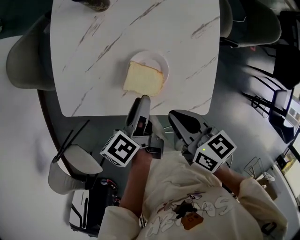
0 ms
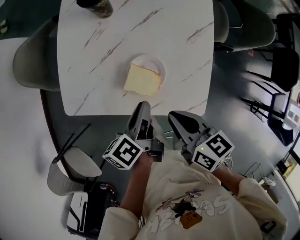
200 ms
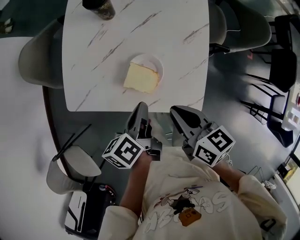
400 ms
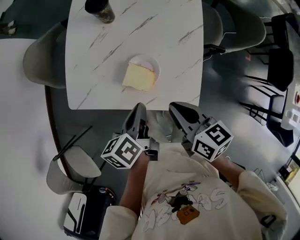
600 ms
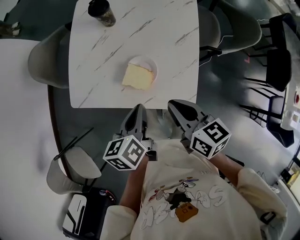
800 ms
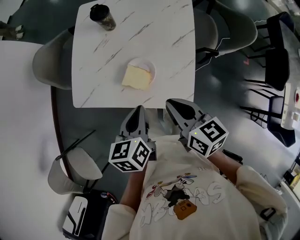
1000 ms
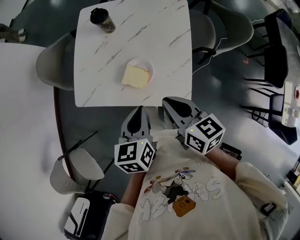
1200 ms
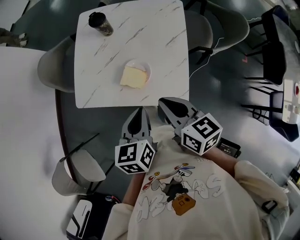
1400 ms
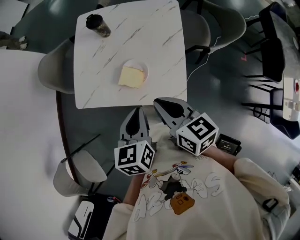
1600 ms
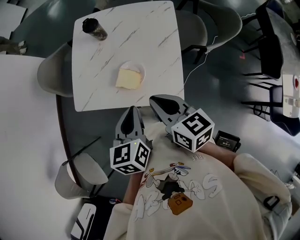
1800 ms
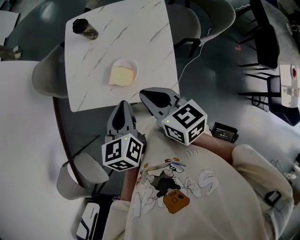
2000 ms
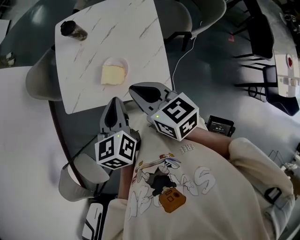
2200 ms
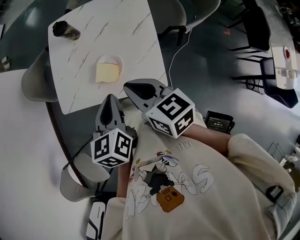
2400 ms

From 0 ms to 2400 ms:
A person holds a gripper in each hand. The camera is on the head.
From 0 ms to 1200 ms: The right gripper moves upward, approximately 15 cm.

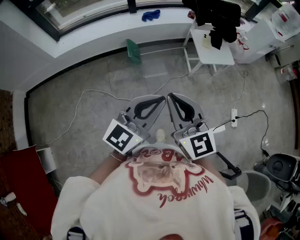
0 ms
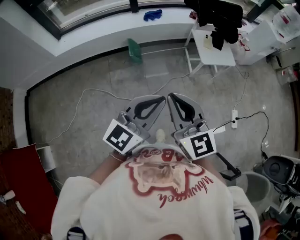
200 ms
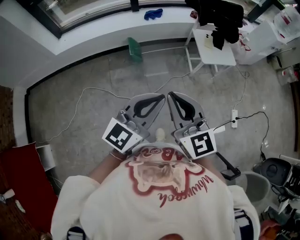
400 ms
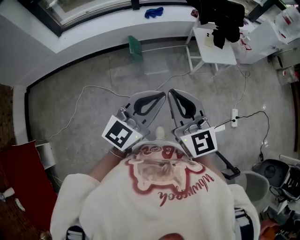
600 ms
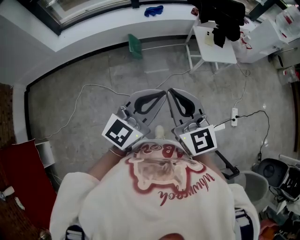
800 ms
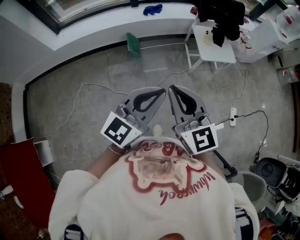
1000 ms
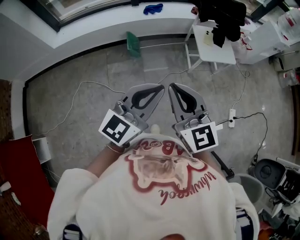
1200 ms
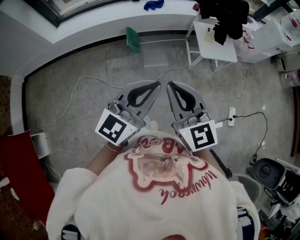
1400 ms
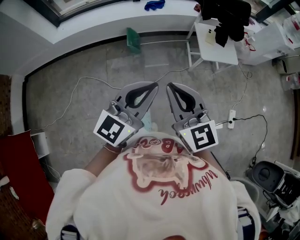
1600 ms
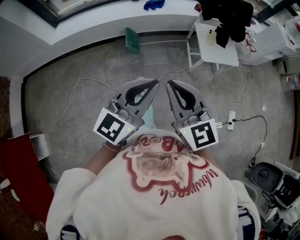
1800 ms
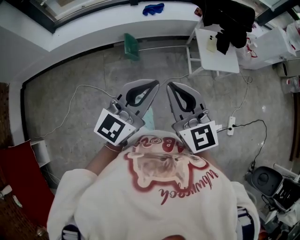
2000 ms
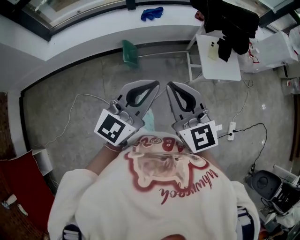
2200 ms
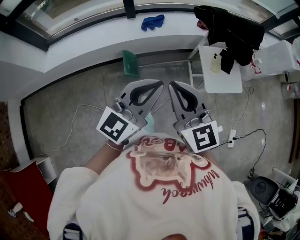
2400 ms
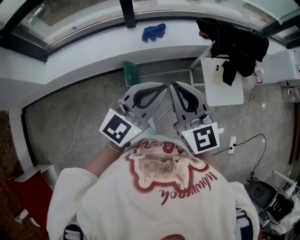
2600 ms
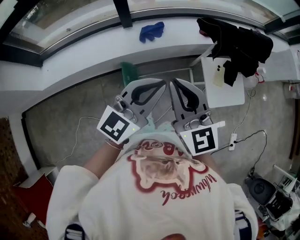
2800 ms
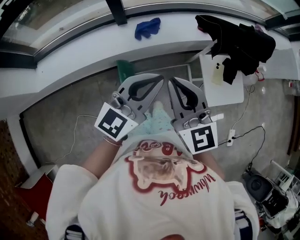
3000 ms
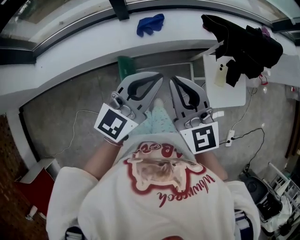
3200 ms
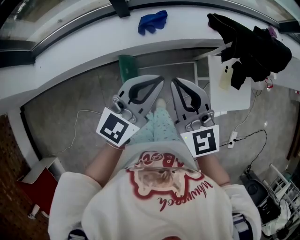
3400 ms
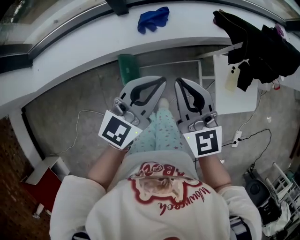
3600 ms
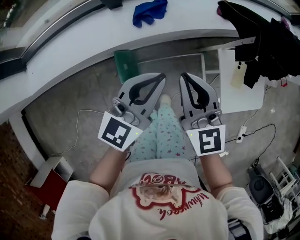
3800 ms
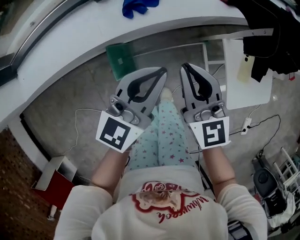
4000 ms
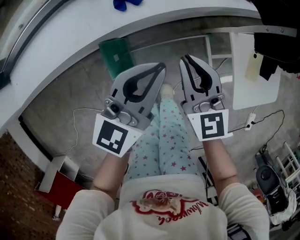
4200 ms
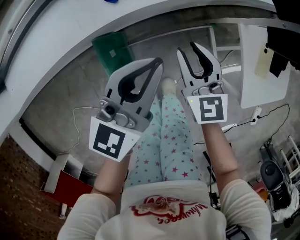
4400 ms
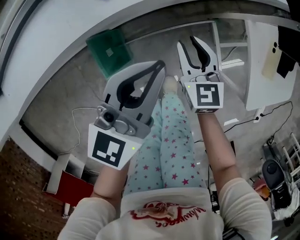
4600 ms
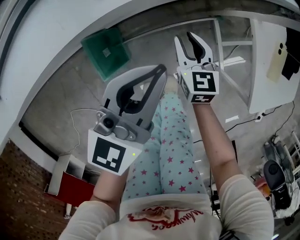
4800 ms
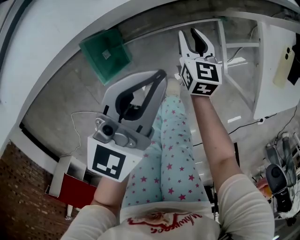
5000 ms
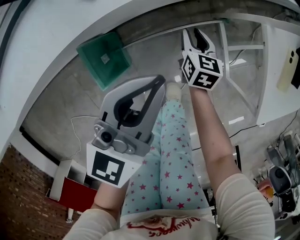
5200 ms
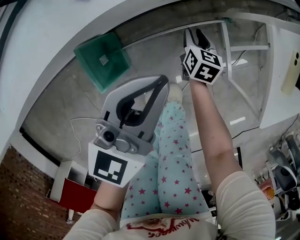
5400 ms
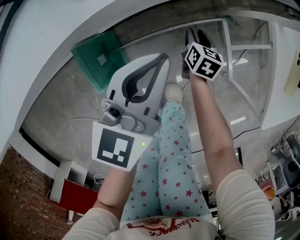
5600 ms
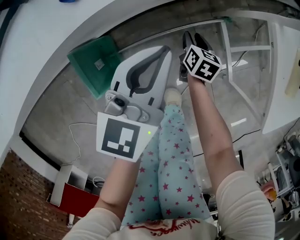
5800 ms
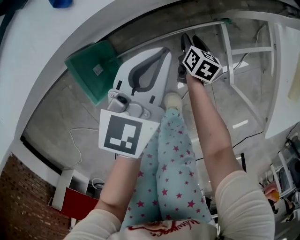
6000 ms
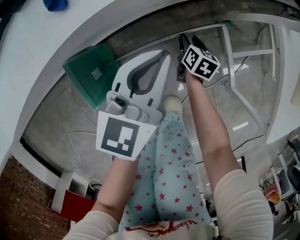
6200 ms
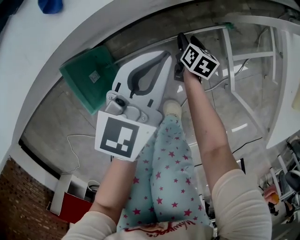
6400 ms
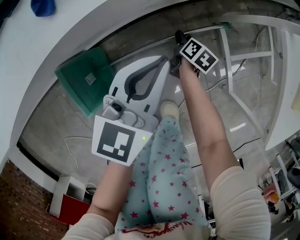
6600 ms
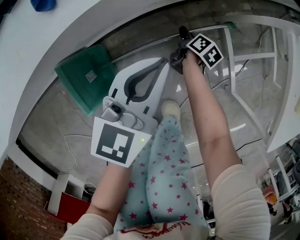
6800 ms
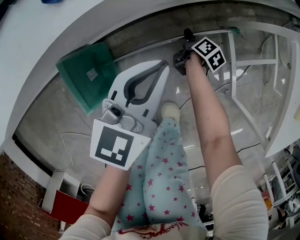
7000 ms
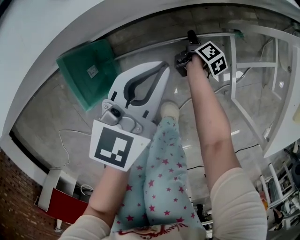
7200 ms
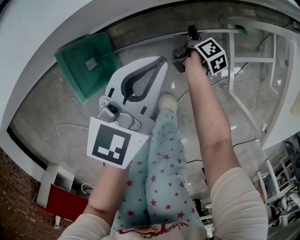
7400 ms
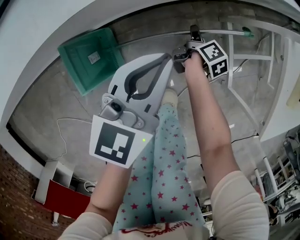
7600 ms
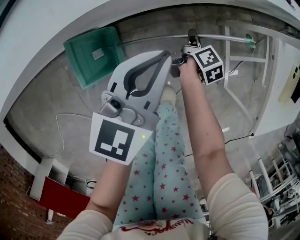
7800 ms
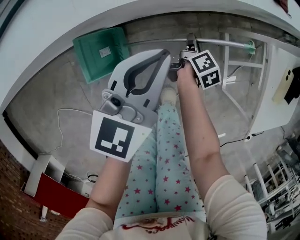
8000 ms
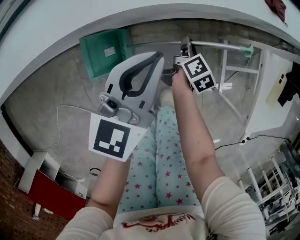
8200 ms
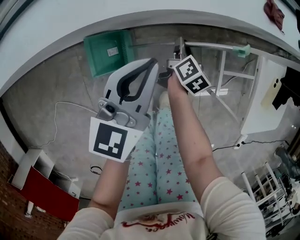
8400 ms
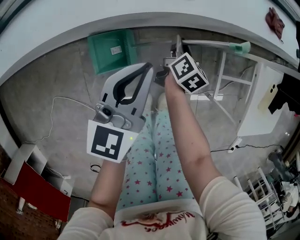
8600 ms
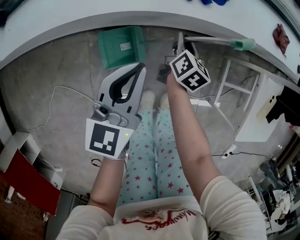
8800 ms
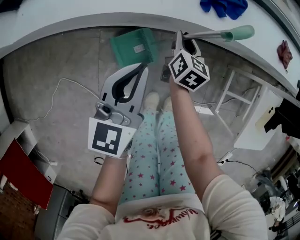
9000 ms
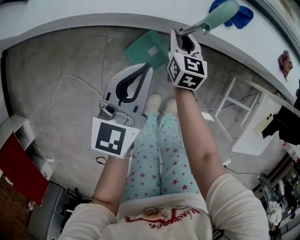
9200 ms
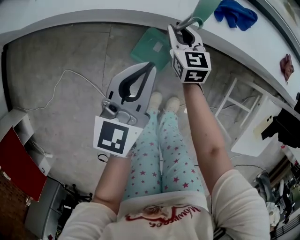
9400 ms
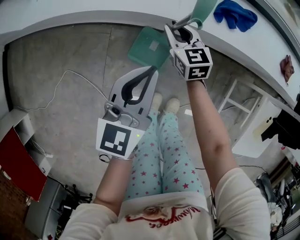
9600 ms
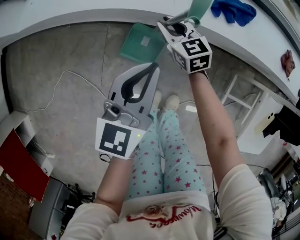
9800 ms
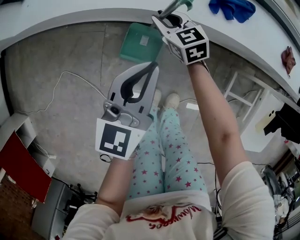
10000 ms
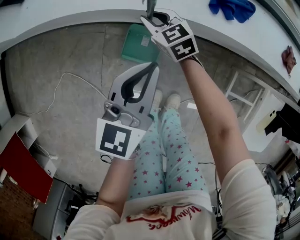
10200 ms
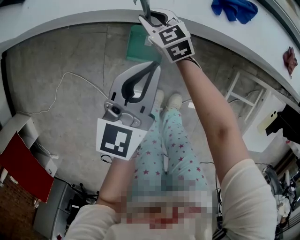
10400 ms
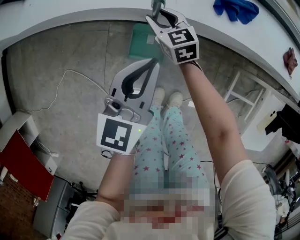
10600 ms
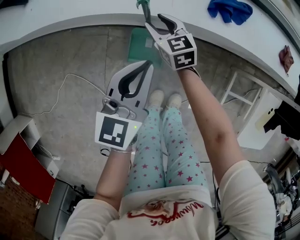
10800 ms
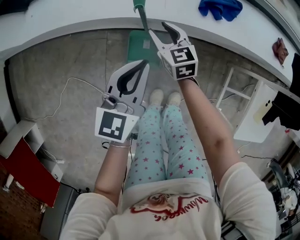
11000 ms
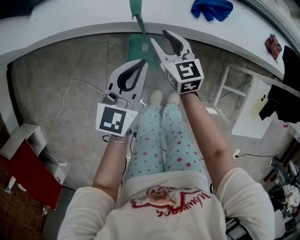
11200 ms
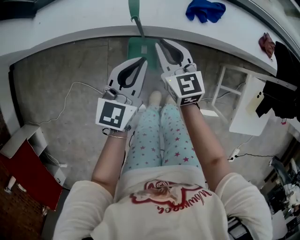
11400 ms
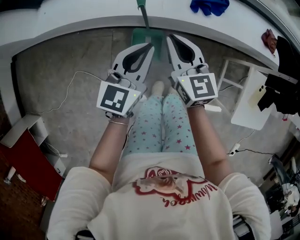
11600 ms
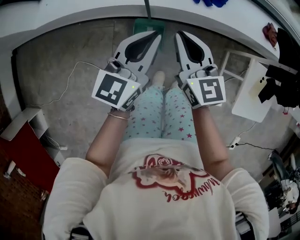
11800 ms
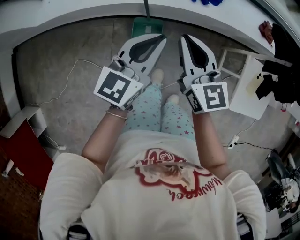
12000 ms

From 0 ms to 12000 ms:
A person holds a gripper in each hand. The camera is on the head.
From 0 ms to 1600 ms: The right gripper ends up about 5 cm from where it was. The left gripper ends up about 5 cm from where it was.
From 1600 ms to 3000 ms: The pair of grippers is taken forward, approximately 50 cm.
From 3000 ms to 4400 ms: Both grippers move downward and forward, approximately 40 cm. The right gripper rotates approximately 20 degrees, and opens its fingers.
From 4400 ms to 6000 ms: The right gripper is displaced downward by roughly 40 cm, and twists some 40 degrees clockwise, seen from behind, while the left gripper travels downward by roughly 25 cm.
From 6000 ms to 7600 ms: The right gripper travels downward and back again, roughly 10 cm each way, and swivels about 40 degrees.
From 7600 ms to 9000 ms: The left gripper moves approximately 30 cm, and changes its angle by some 30 degrees; the right gripper changes place by roughly 40 cm, and rolls counterclockwise, seen from behind, by about 50 degrees.
From 9000 ms to 10400 ms: The right gripper moves approximately 20 cm, and turns by roughly 60 degrees.
From 10400 ms to 12000 ms: The right gripper is displaced upward and backward by approximately 40 cm, and swivels roughly 30 degrees; the left gripper goes approximately 15 cm upward.

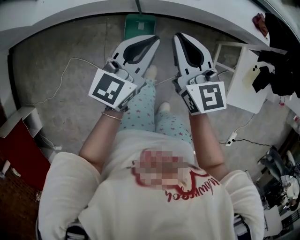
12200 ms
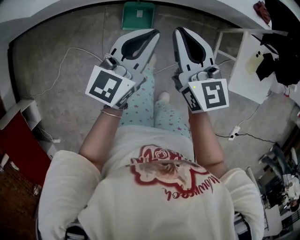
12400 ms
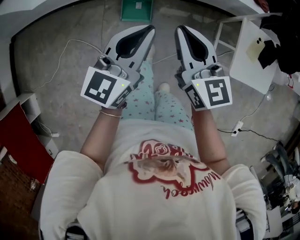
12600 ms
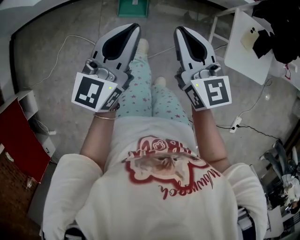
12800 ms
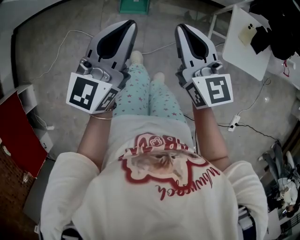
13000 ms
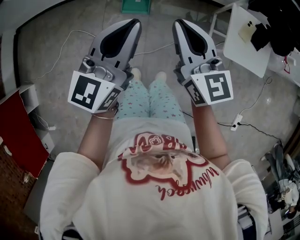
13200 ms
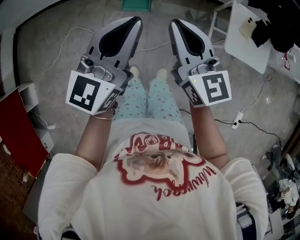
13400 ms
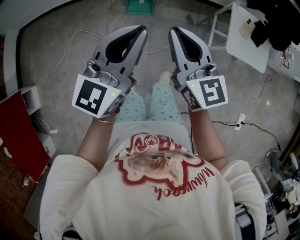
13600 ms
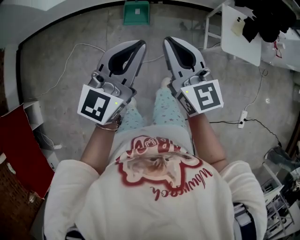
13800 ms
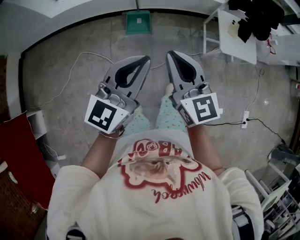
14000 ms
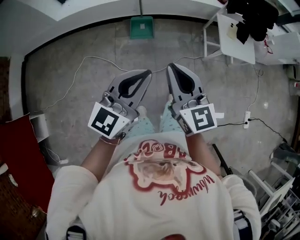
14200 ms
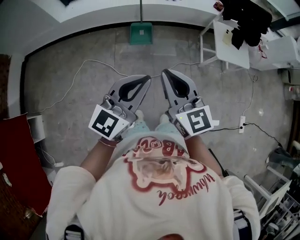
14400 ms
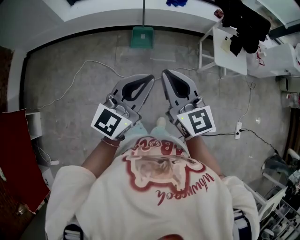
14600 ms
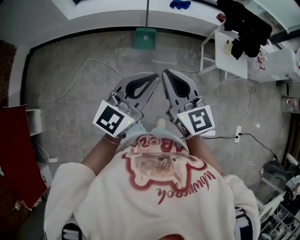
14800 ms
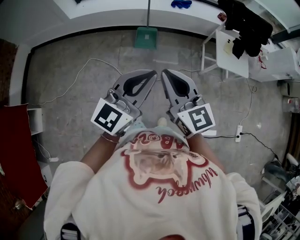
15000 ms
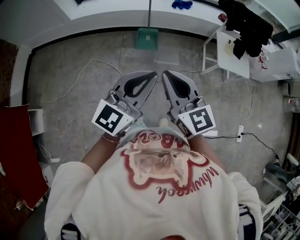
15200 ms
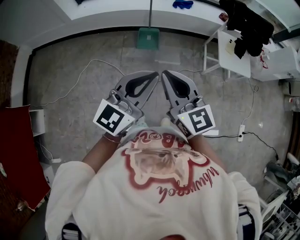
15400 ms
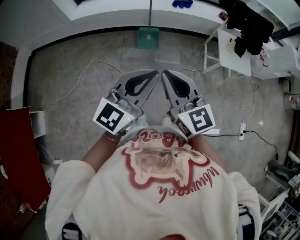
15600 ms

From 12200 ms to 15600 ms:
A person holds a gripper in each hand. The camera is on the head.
From 12200 ms to 13800 ms: The left gripper travels backward and upward by some 40 cm. The right gripper is displaced backward by approximately 40 cm.
From 13800 ms to 15600 ms: The grippers both shift backward, to the left and upward by some 25 cm.

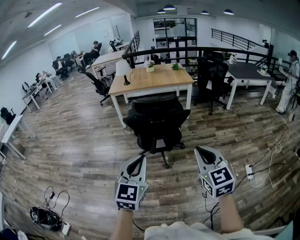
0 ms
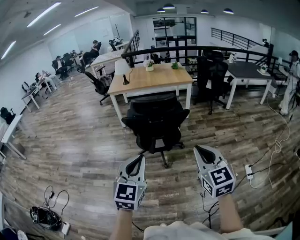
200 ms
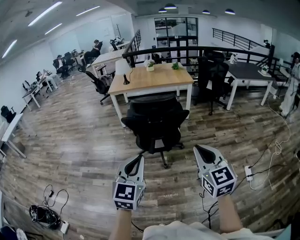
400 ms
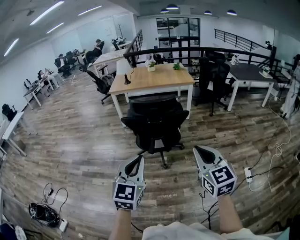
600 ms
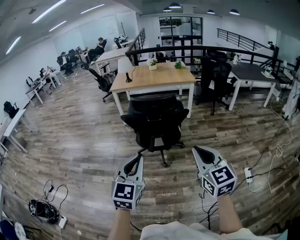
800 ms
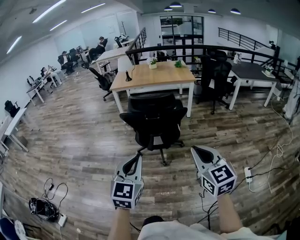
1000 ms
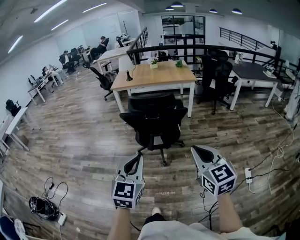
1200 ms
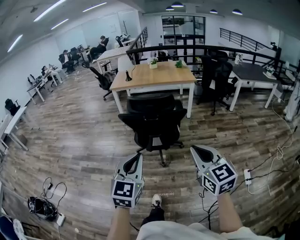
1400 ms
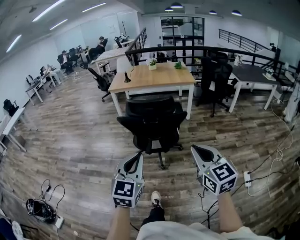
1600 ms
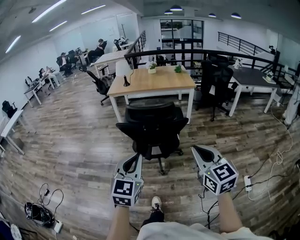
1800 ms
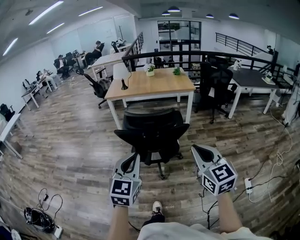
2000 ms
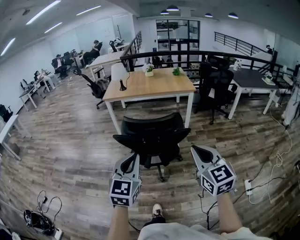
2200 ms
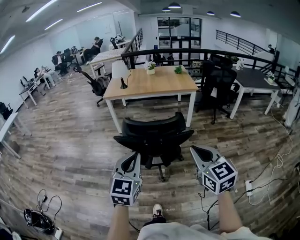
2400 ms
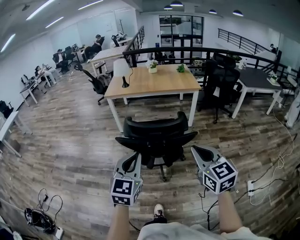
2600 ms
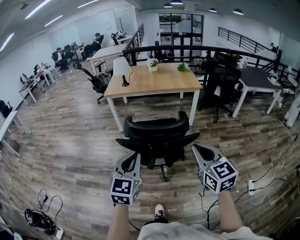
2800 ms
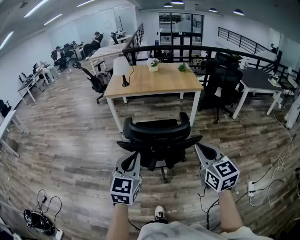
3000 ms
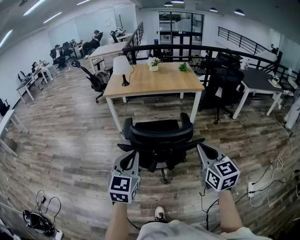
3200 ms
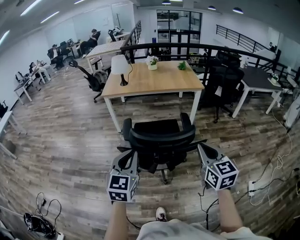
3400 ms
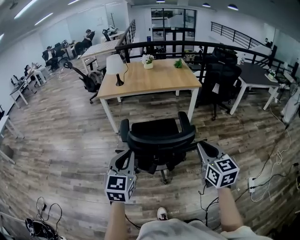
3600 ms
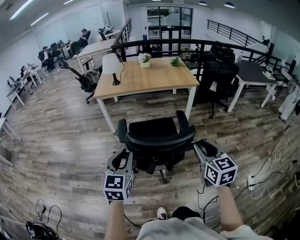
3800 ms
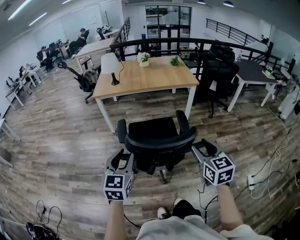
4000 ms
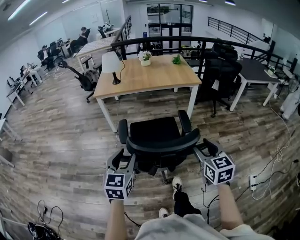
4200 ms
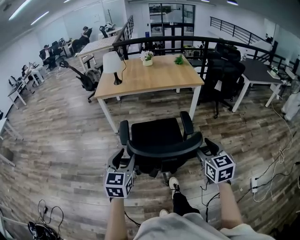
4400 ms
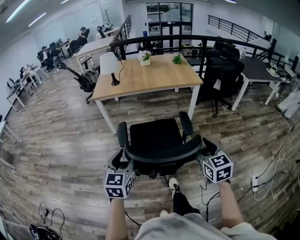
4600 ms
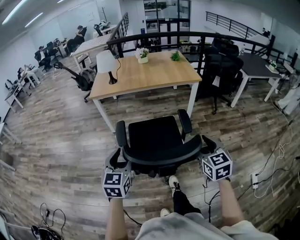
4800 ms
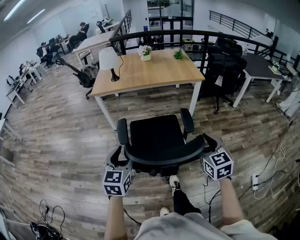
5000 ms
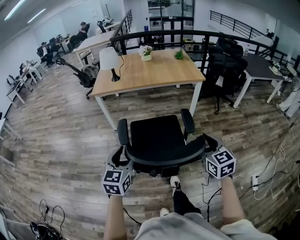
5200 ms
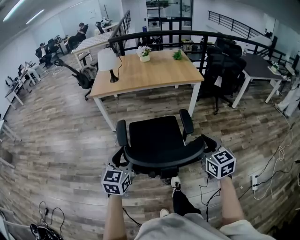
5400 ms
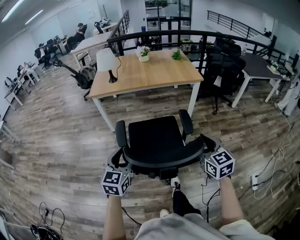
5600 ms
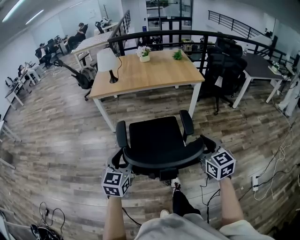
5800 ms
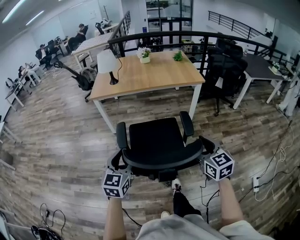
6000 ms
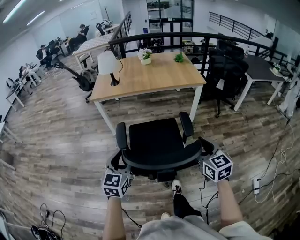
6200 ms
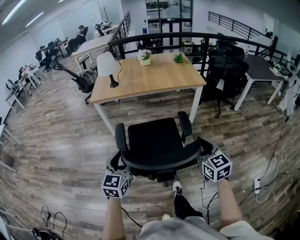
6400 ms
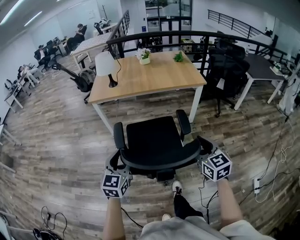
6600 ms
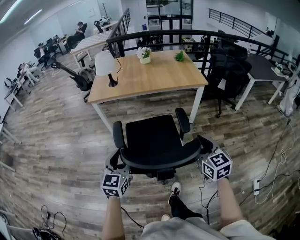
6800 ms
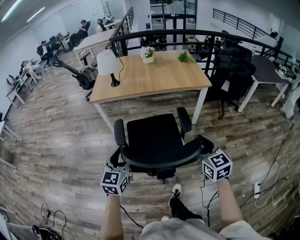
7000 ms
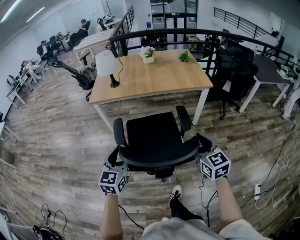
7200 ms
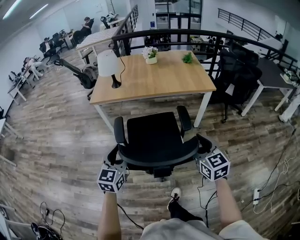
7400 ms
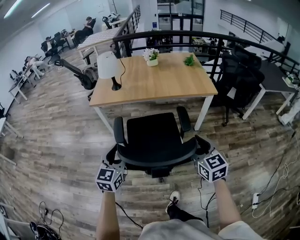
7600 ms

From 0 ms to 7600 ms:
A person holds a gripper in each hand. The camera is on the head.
From 0 ms to 1600 ms: The left gripper moves to the right, about 5 cm. Meanwhile the right gripper shifts by some 5 cm.
From 1600 ms to 3000 ms: Both grippers move forward, roughly 25 cm.
From 3000 ms to 4600 ms: Both grippers travel together forward and downward, about 20 cm. The left gripper opens its fingers. Meanwhile the right gripper opens.
From 4600 ms to 6000 ms: The two grippers go about 5 cm forward.
From 6000 ms to 7600 ms: The grippers both shift forward by about 20 cm.
